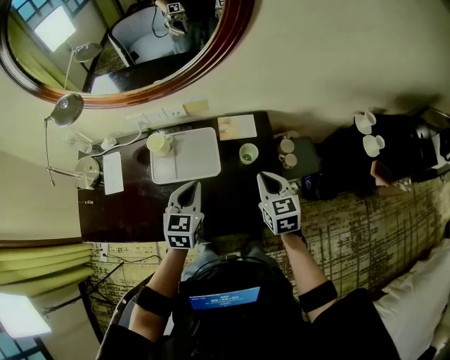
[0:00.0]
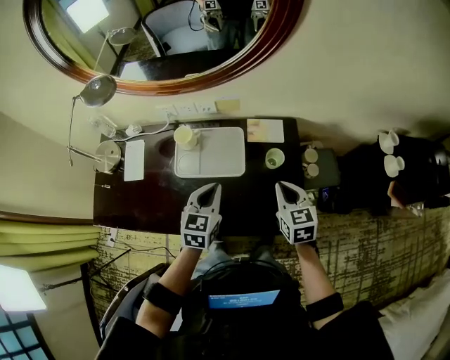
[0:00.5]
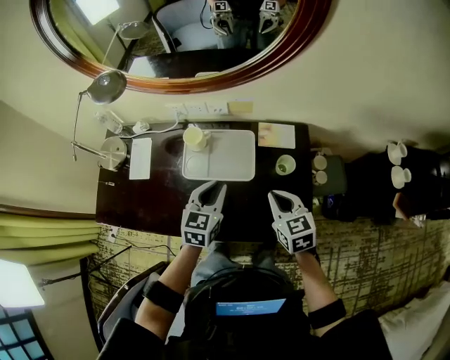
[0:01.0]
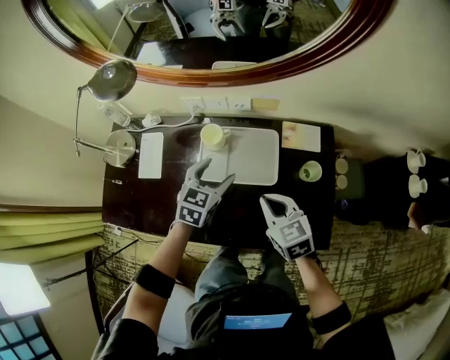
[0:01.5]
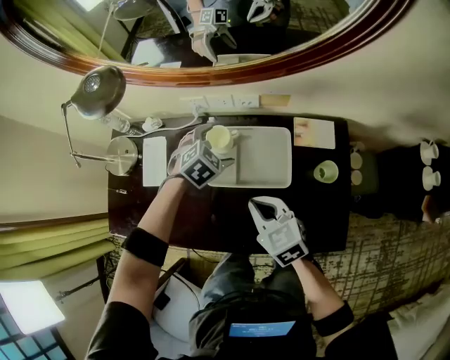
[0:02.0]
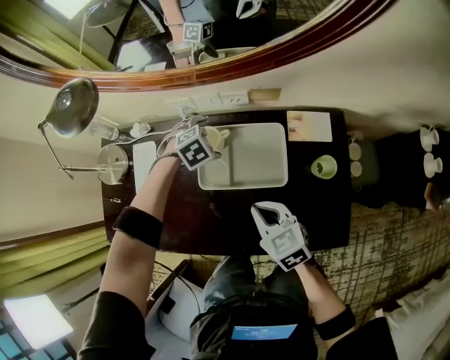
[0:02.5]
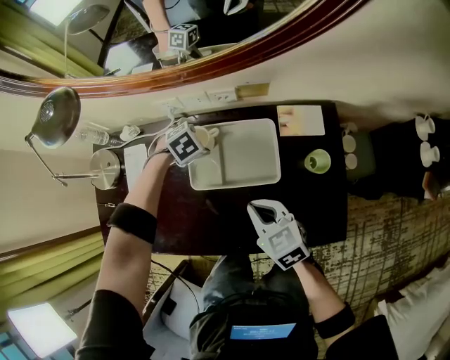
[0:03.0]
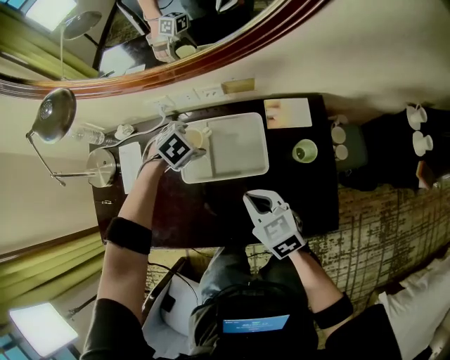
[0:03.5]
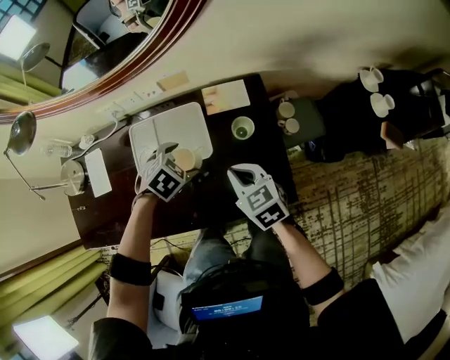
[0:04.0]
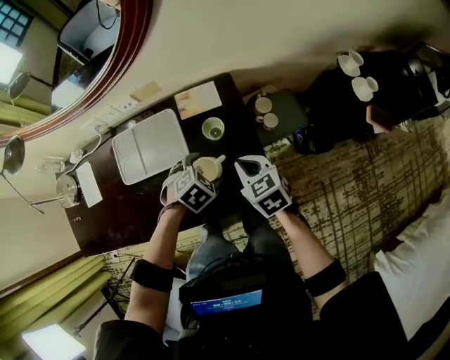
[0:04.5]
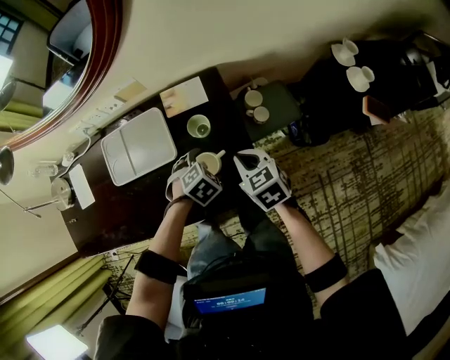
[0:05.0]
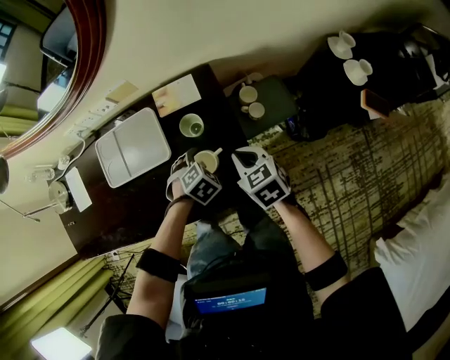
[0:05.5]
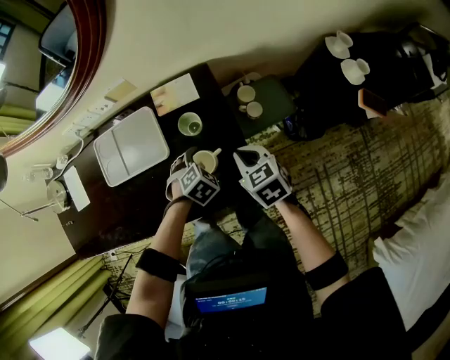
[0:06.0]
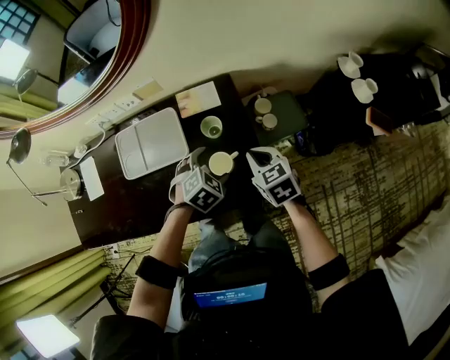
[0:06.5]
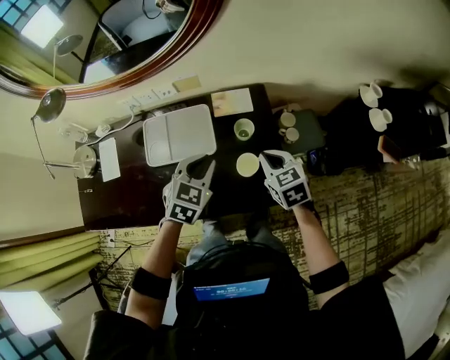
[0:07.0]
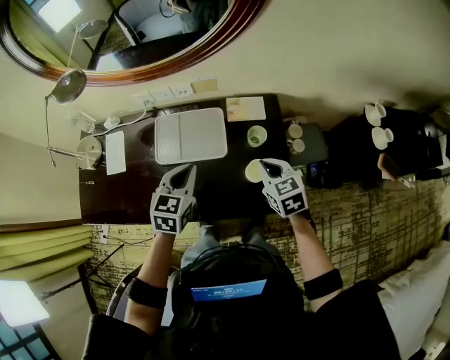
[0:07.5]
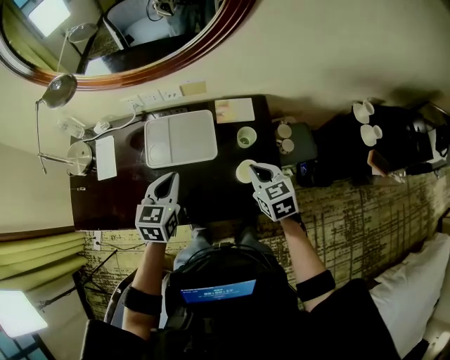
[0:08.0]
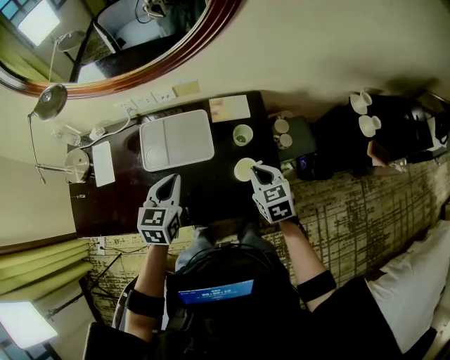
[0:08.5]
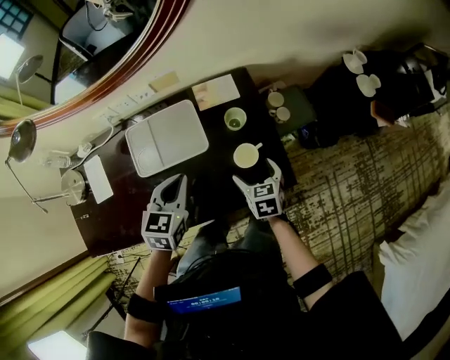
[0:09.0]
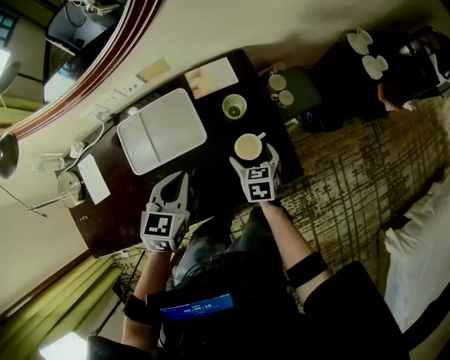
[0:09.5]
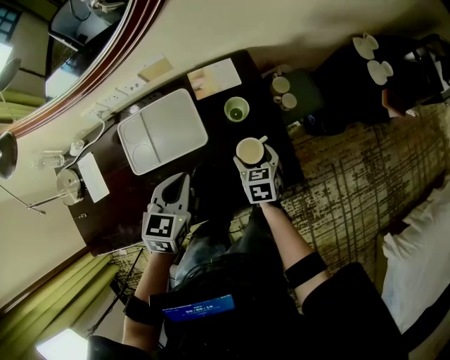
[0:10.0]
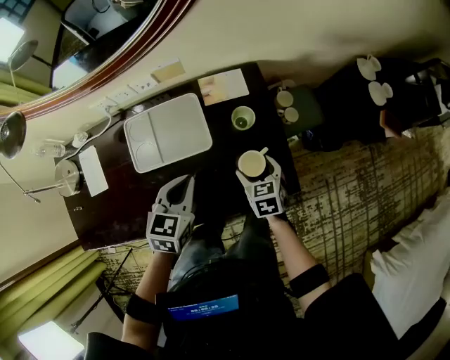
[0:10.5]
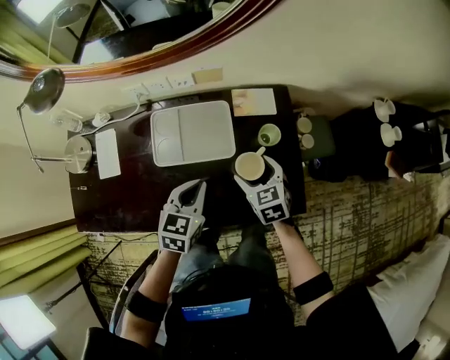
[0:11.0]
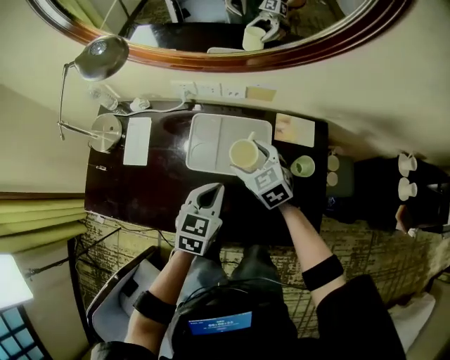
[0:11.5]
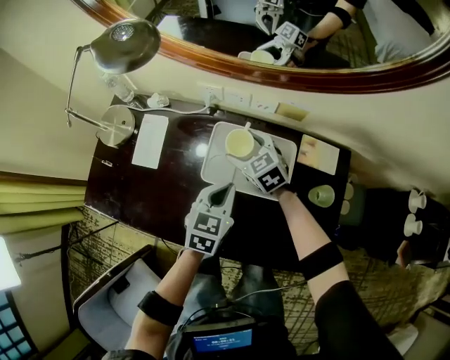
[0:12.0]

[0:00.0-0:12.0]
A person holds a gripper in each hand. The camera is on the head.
0:00.0 to 0:02.0: The left gripper travels forward, to the left and downward by roughly 30 cm, points its fingers approximately 30 degrees further downward, and opens its fingers; the right gripper moves to the left, about 25 cm, and turns by approximately 30 degrees.
0:02.0 to 0:04.0: The right gripper shifts by approximately 20 cm. Meanwhile the left gripper travels downward and back again, roughly 10 cm each way.
0:04.0 to 0:06.0: The right gripper goes roughly 20 cm to the right. The left gripper heads to the right and downward, covering some 25 cm.
0:06.0 to 0:08.0: The left gripper moves to the left and upward, roughly 35 cm, angles its fingers upward, by roughly 40 degrees, and closes its fingers. The right gripper moves to the left and upward, approximately 15 cm.
0:08.0 to 0:10.0: The right gripper moves downward, roughly 20 cm, changes its angle by some 30 degrees, and opens up. Meanwhile the left gripper shifts approximately 10 cm downward and to the right.
0:10.0 to 0:12.0: The right gripper shifts by about 40 cm, and rotates some 60 degrees. Meanwhile the left gripper changes place by approximately 15 cm, and rotates some 20 degrees.

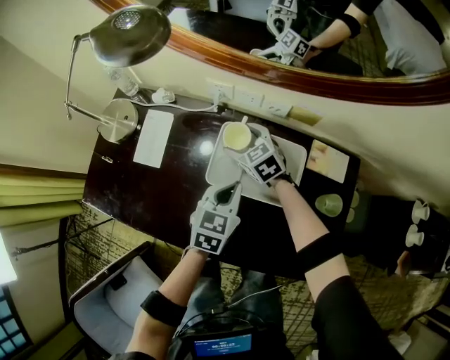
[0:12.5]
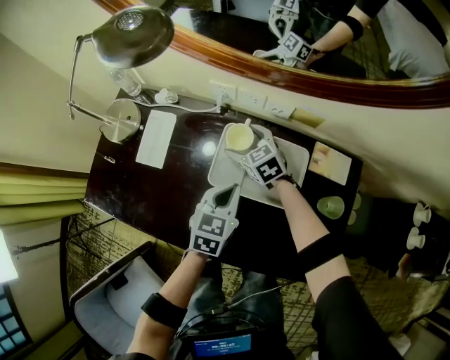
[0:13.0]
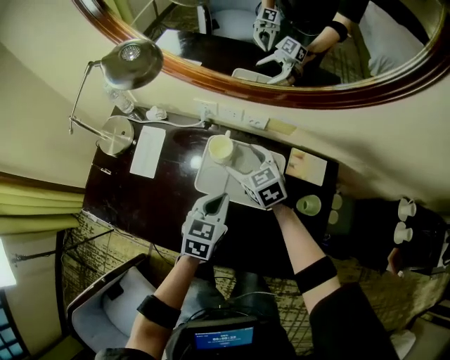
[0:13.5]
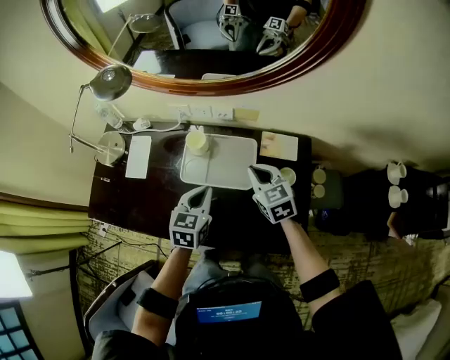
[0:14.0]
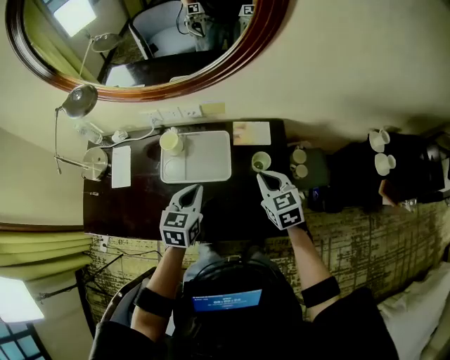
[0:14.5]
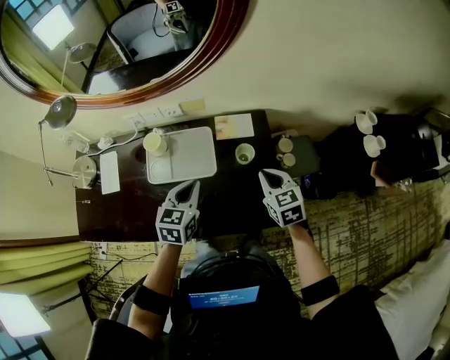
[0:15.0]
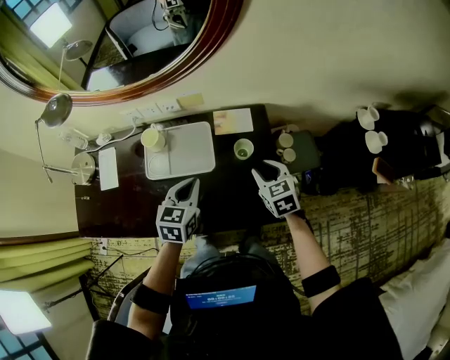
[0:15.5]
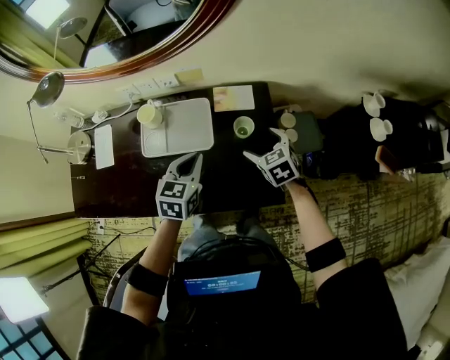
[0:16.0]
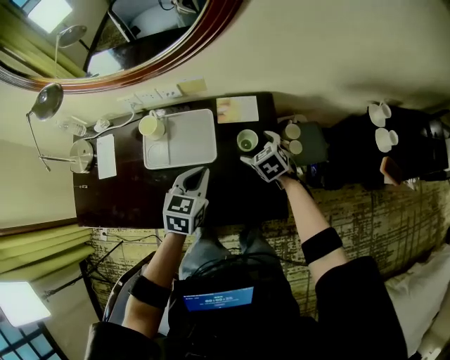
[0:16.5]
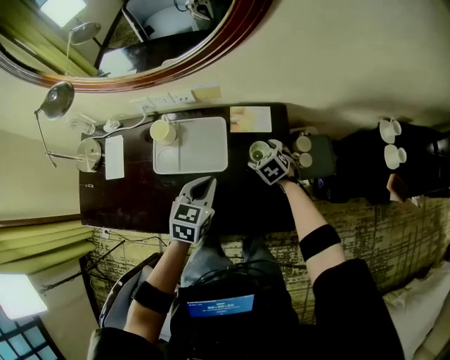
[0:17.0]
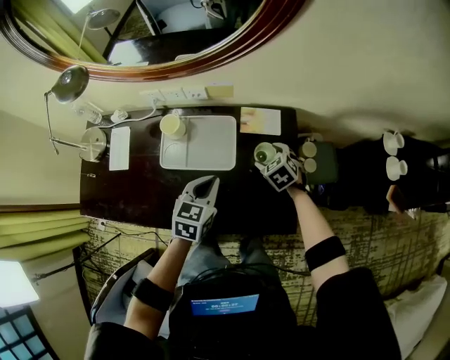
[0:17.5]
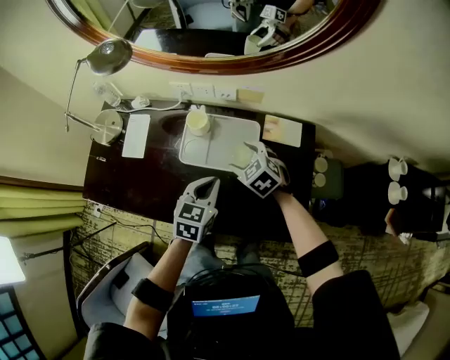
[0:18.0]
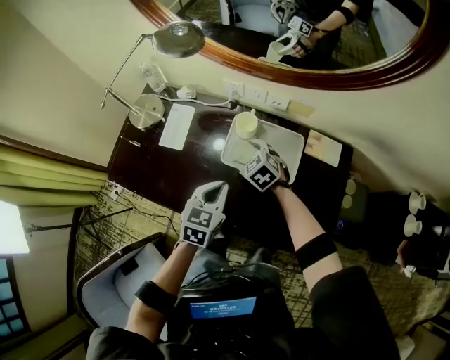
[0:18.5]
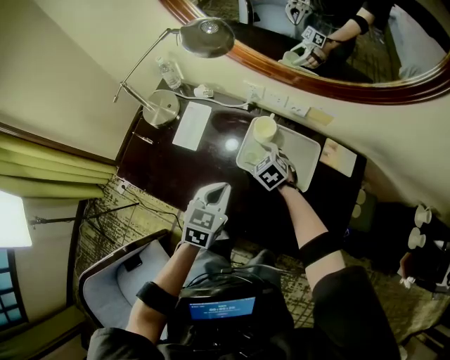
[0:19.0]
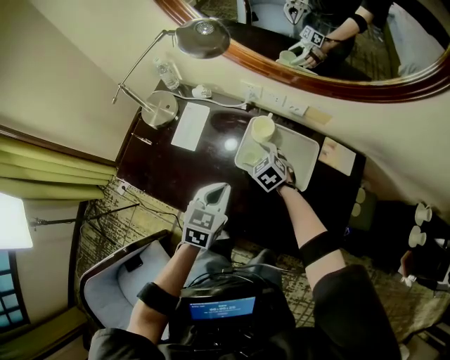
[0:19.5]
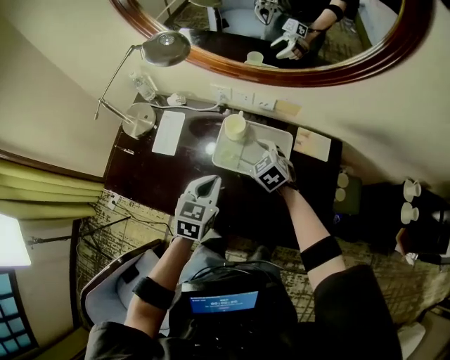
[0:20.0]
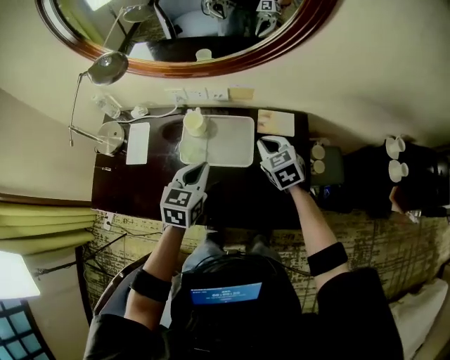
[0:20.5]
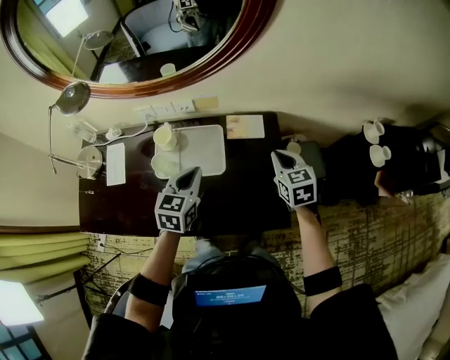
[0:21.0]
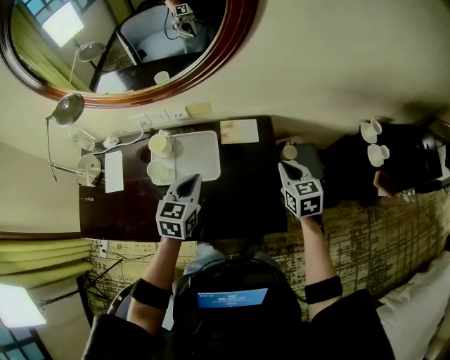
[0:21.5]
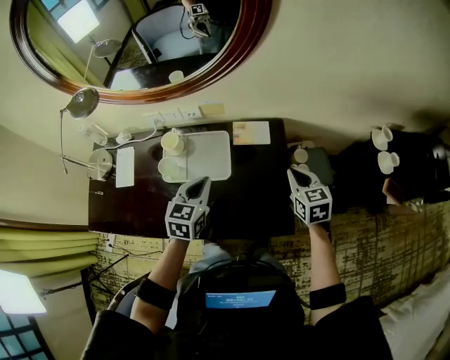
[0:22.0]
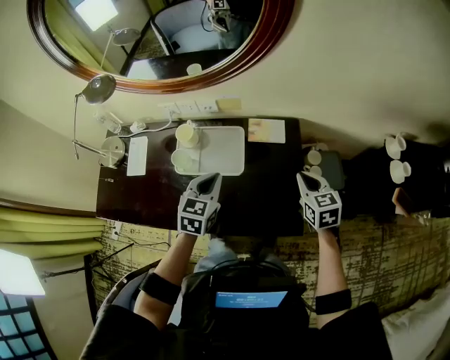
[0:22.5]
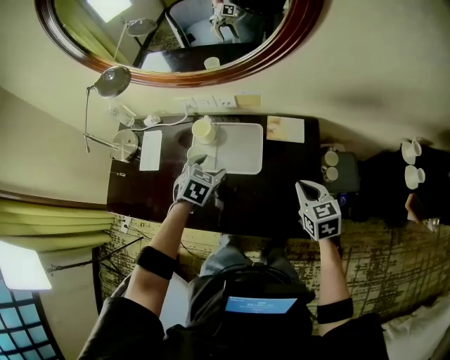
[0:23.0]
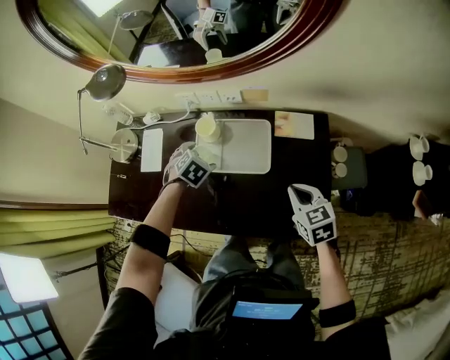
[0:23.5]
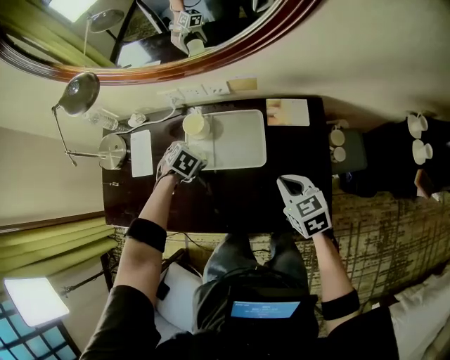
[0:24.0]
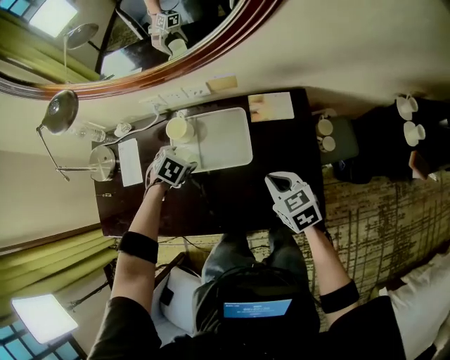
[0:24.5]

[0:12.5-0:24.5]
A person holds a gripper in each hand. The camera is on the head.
0:12.5 to 0:14.5: The right gripper heads to the right, backward and upward, covering some 40 cm, changes its angle by about 30 degrees, and closes. The left gripper goes some 20 cm backward, upward and to the right.
0:14.5 to 0:16.5: The right gripper shifts roughly 15 cm downward and forward, turns by roughly 20 degrees, and opens up. The left gripper travels to the right by roughly 10 cm.
0:16.5 to 0:18.5: The left gripper is displaced to the left by roughly 25 cm, while the right gripper goes about 35 cm to the left, and rotates roughly 30 degrees.
0:18.5 to 0:20.5: The left gripper is displaced to the right and upward by some 10 cm. The right gripper heads to the right and upward, covering roughly 25 cm, turns by about 30 degrees, and closes.
0:20.5 to 0:22.5: The left gripper is displaced to the right by approximately 10 cm. The right gripper shifts about 20 cm to the right and backward, and swivels approximately 20 degrees.
0:22.5 to 0:24.5: The left gripper changes place by some 25 cm, angles its fingers downward, by some 40 degrees, and opens, while the right gripper ends up about 20 cm from where it was.

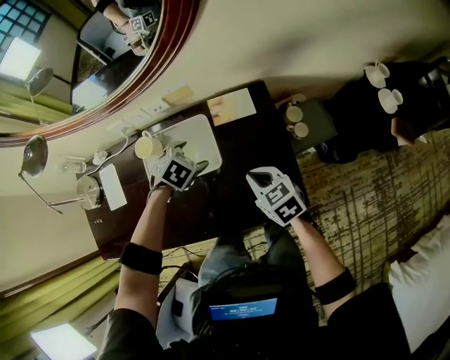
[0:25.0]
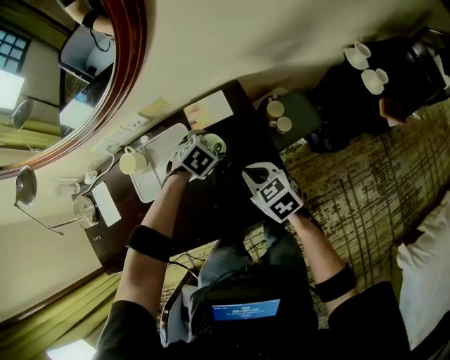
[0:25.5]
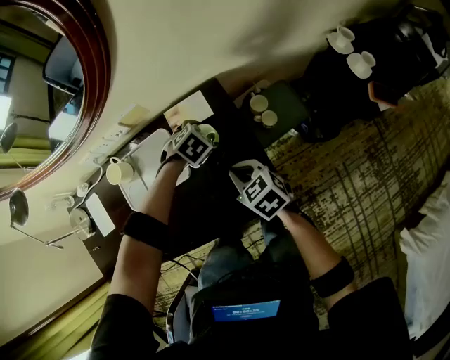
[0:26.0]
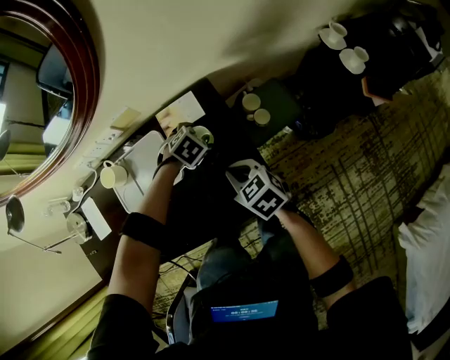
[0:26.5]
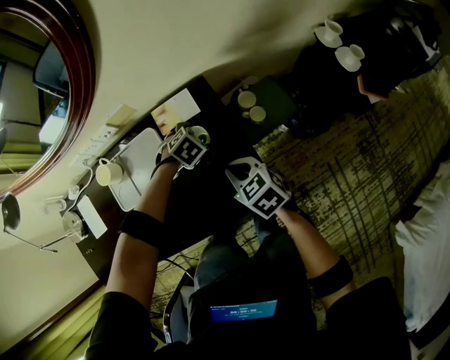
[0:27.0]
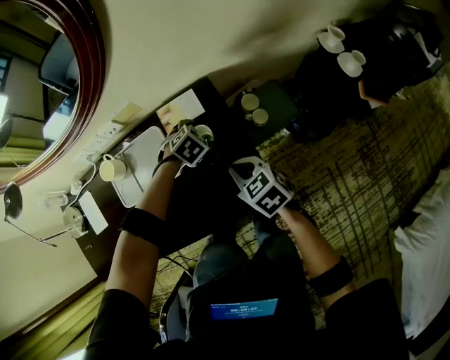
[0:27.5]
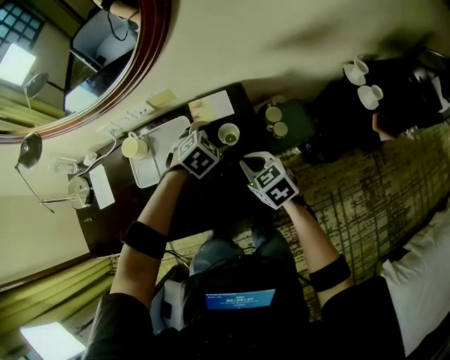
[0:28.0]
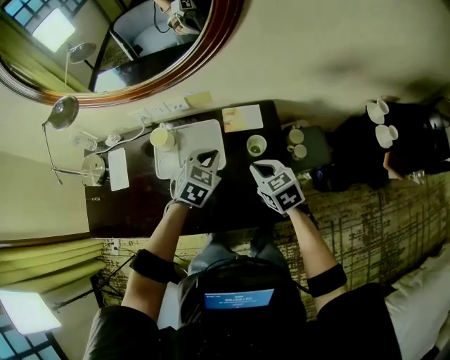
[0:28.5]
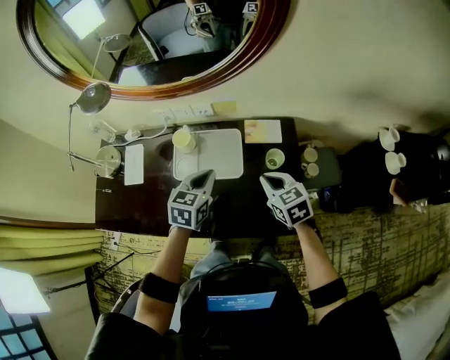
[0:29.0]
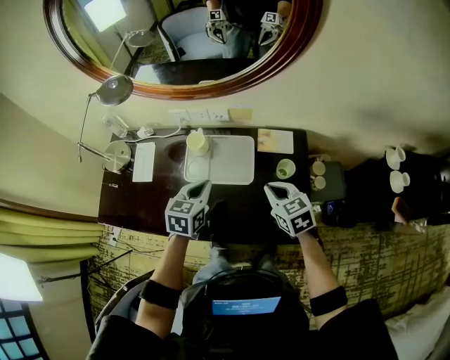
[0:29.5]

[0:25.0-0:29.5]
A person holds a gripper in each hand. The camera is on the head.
0:25.0 to 0:27.0: The right gripper goes some 10 cm to the right; the left gripper is displaced to the right and downward by roughly 20 cm.
0:27.0 to 0:29.5: The left gripper ends up roughly 40 cm from where it was, angles its fingers upward, by some 40 degrees, and closes up. Meanwhile the right gripper moves approximately 15 cm.
